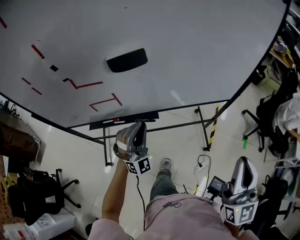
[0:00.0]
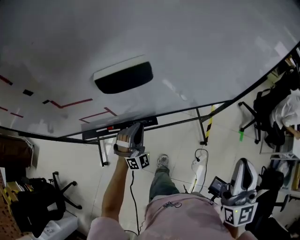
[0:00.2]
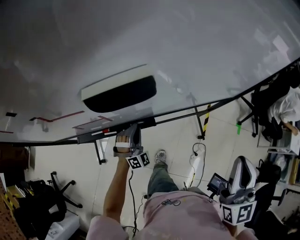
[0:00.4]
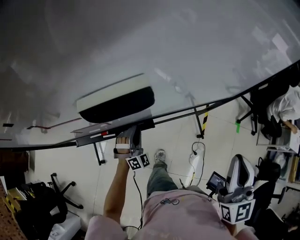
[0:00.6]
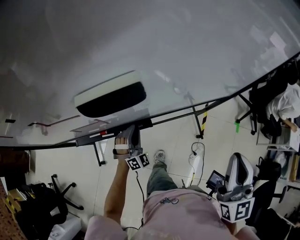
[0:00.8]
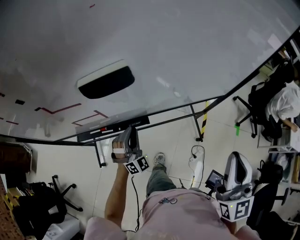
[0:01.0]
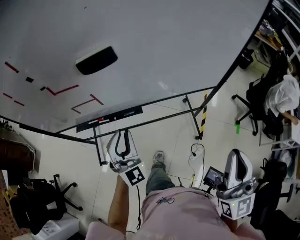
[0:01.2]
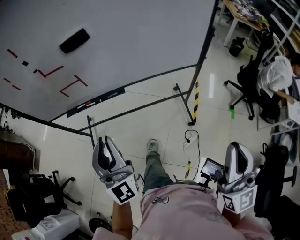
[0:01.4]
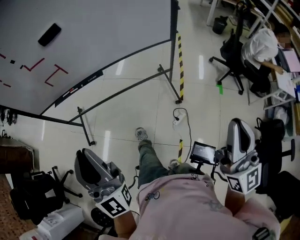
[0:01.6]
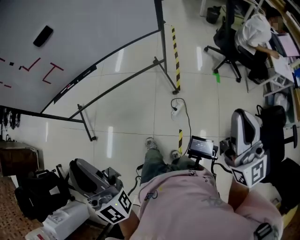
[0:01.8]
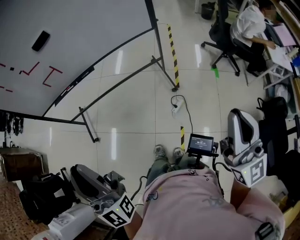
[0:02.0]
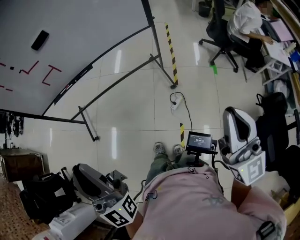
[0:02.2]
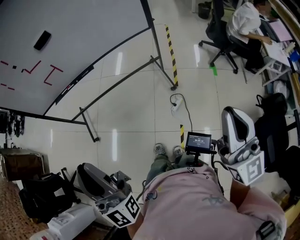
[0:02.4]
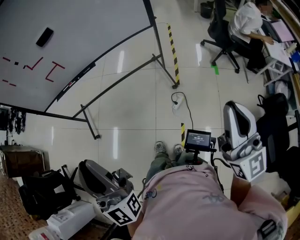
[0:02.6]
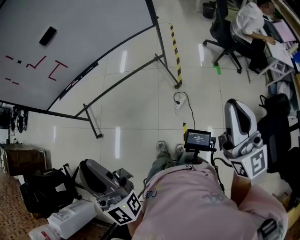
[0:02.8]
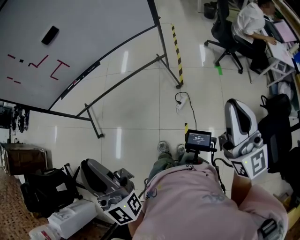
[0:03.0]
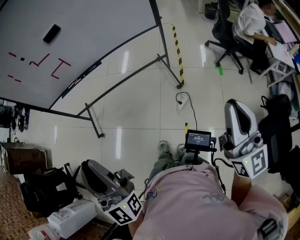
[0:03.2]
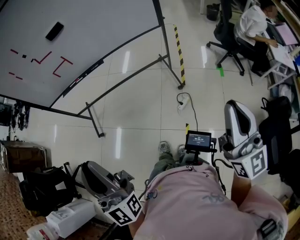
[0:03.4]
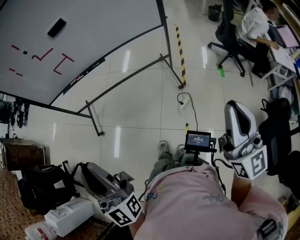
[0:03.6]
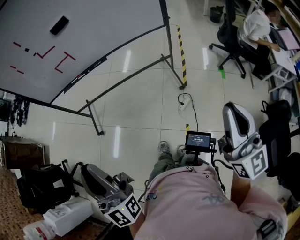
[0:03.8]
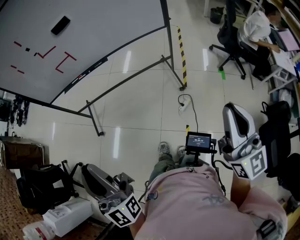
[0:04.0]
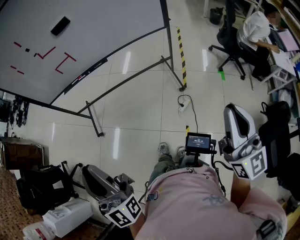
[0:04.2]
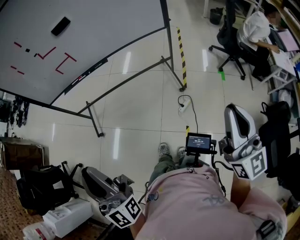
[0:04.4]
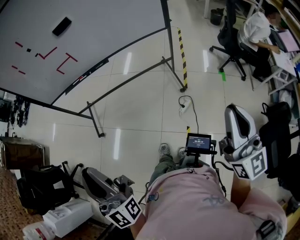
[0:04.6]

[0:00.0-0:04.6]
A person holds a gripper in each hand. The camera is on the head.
0:00.0 to 0:01.6: The left gripper goes some 40 cm backward and upward, and twists roughly 40 degrees counterclockwise, seen from behind. Meanwhile the right gripper shifts roughly 30 cm backward and to the right.
0:01.6 to 0:03.0: Both grippers travel together backward, some 15 cm.
0:03.0 to 0:04.6: The left gripper heads to the left, covering approximately 10 cm.

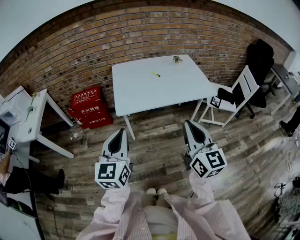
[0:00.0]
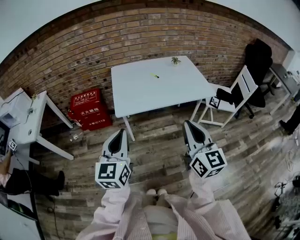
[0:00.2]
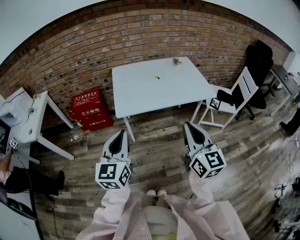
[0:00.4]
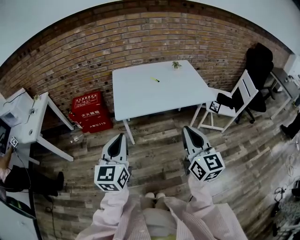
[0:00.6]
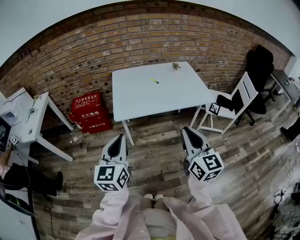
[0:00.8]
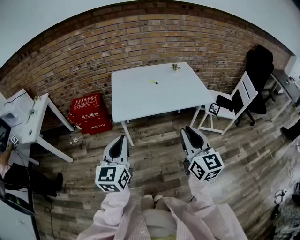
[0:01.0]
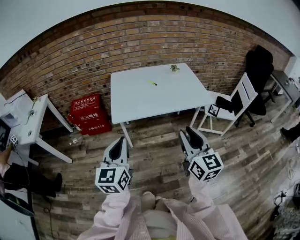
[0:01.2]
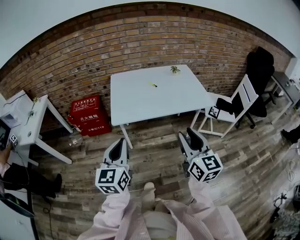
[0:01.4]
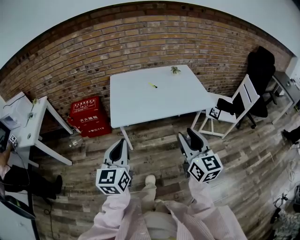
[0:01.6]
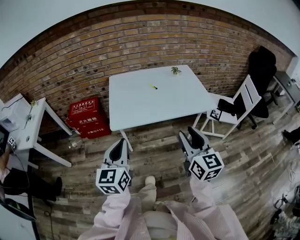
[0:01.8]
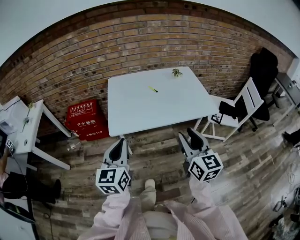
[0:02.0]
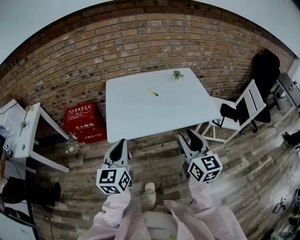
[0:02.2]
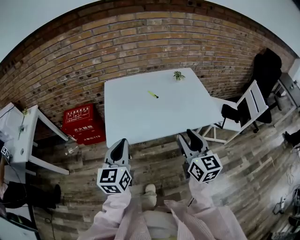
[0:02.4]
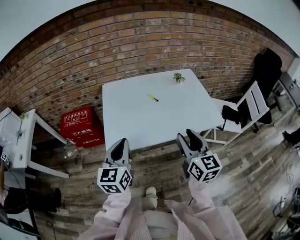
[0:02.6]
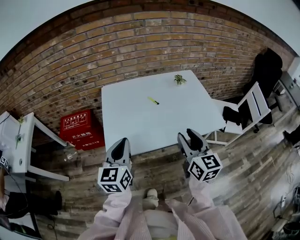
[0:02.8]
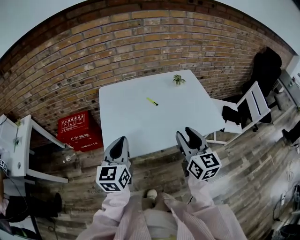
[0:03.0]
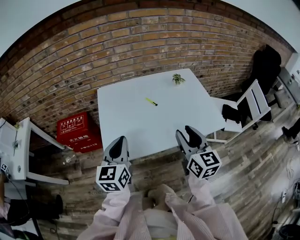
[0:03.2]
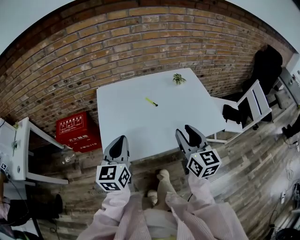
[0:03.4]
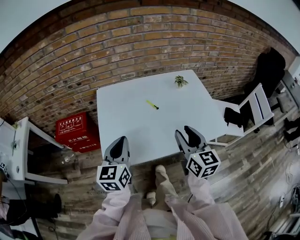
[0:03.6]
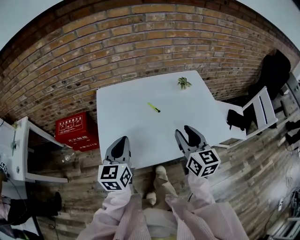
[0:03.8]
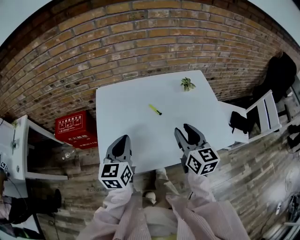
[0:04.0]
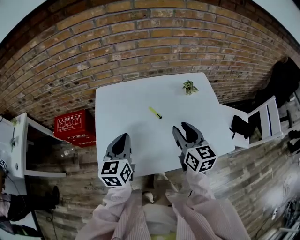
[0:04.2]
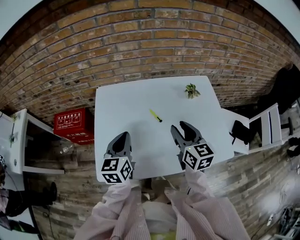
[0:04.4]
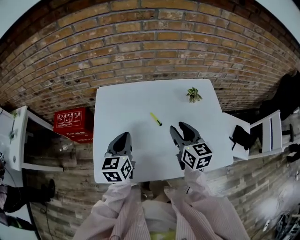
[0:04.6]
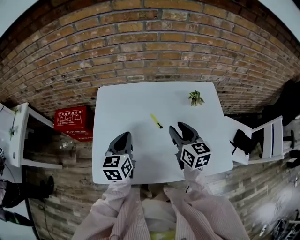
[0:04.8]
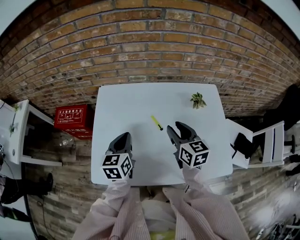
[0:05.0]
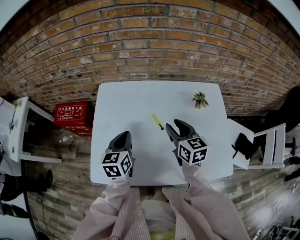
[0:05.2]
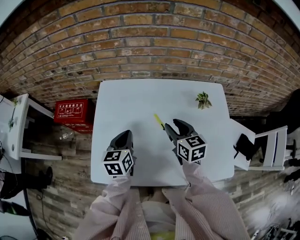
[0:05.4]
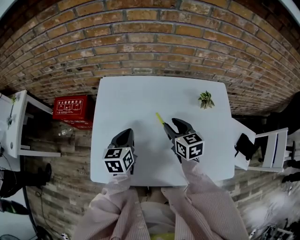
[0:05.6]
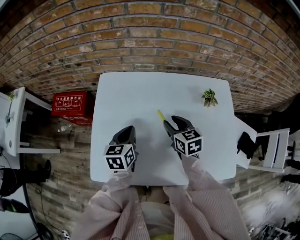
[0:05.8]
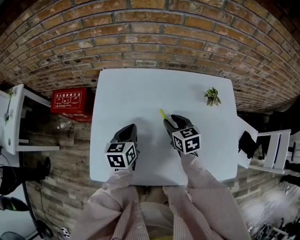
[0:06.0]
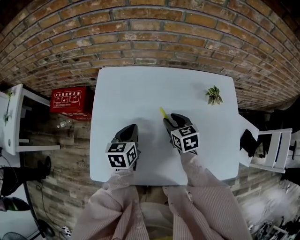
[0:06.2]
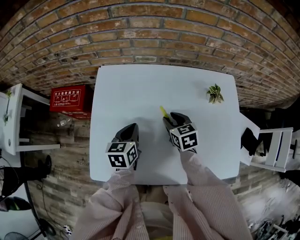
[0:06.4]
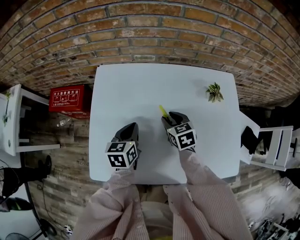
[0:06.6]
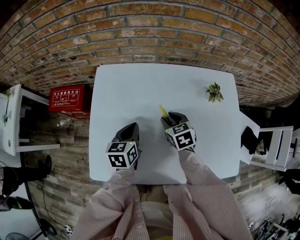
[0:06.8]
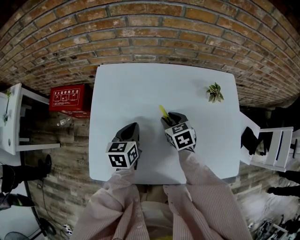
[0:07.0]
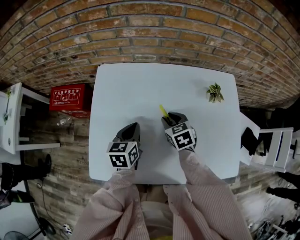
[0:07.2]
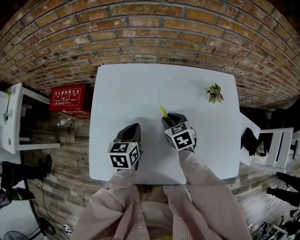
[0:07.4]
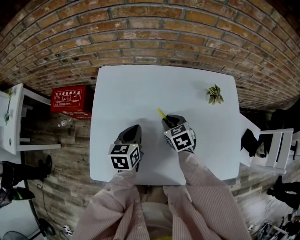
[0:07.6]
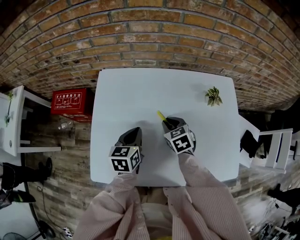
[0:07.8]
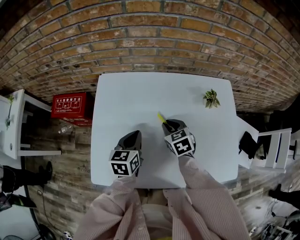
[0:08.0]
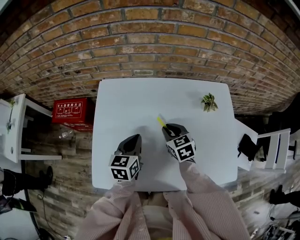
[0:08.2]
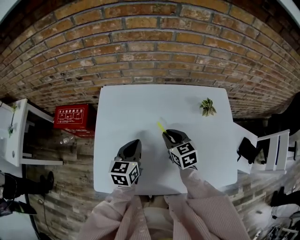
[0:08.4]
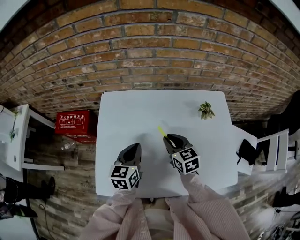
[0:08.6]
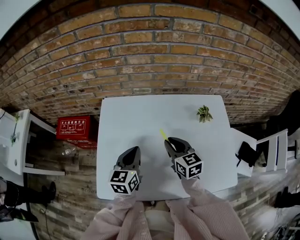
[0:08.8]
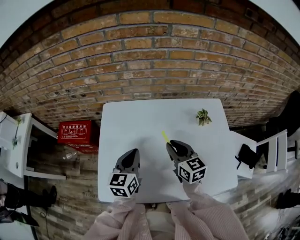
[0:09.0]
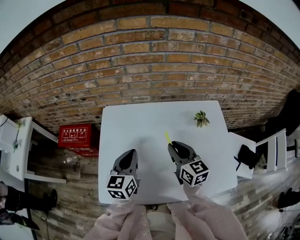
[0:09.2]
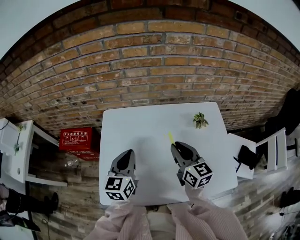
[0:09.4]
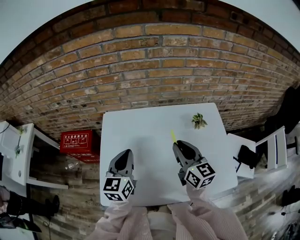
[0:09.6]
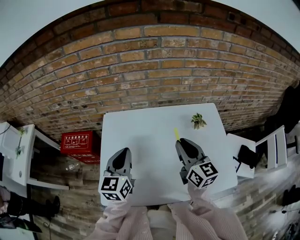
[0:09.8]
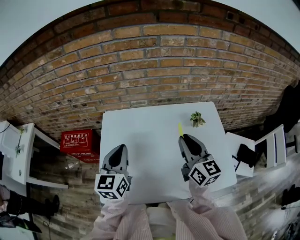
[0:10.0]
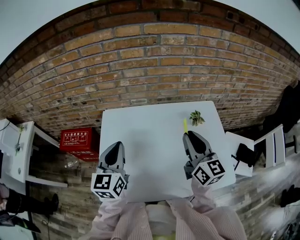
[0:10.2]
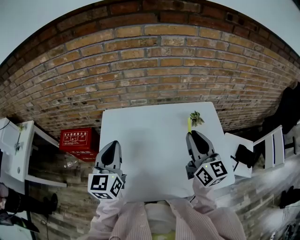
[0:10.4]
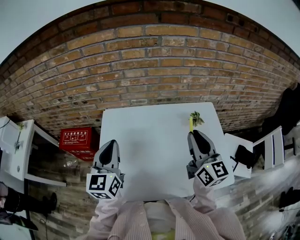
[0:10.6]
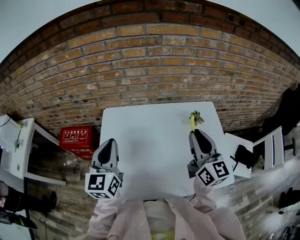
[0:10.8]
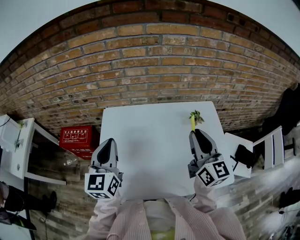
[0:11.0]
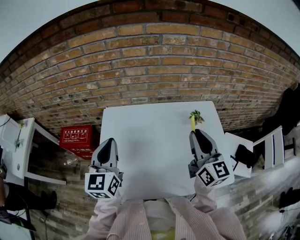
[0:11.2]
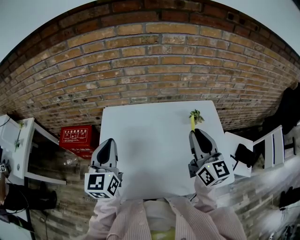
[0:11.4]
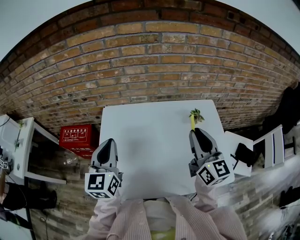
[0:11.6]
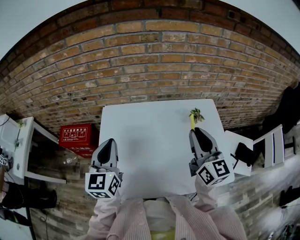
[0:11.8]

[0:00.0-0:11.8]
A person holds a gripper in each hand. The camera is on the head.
0:00.0 to 0:01.4: The right gripper shifts by some 5 cm, and opens up.
0:01.4 to 0:03.0: The two grippers go approximately 30 cm forward.
0:03.0 to 0:04.4: The grippers both shift forward by some 20 cm.
0:04.4 to 0:06.0: Both grippers travel together downward and forward, some 15 cm. The right gripper swivels approximately 30 degrees.
0:06.0 to 0:07.4: The grippers stay close to where they were, moving slightly.
0:07.4 to 0:08.8: Both grippers move upward, some 10 cm. The right gripper turns by about 30 degrees.
0:08.8 to 0:10.4: The right gripper travels upward and to the right by some 20 cm, and rotates about 30 degrees. Meanwhile the left gripper heads upward, covering some 15 cm, and turns by approximately 20 degrees.
0:10.4 to 0:11.8: The grippers stay close to where they were, moving slightly.

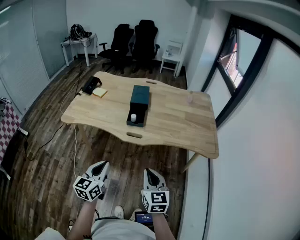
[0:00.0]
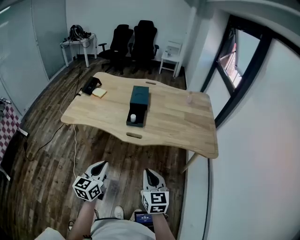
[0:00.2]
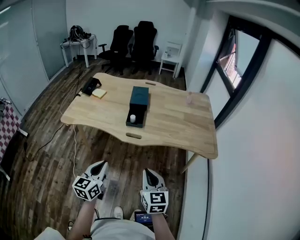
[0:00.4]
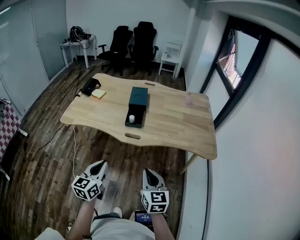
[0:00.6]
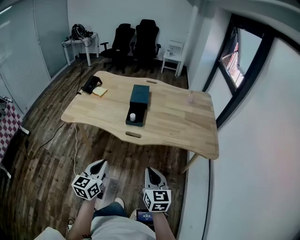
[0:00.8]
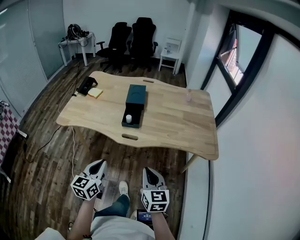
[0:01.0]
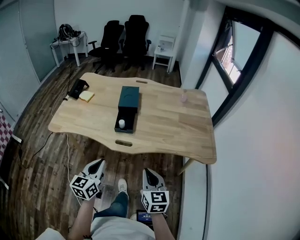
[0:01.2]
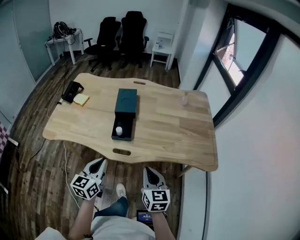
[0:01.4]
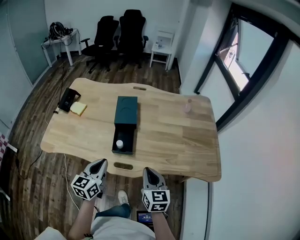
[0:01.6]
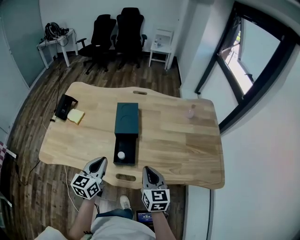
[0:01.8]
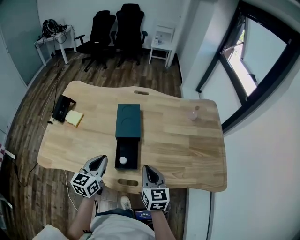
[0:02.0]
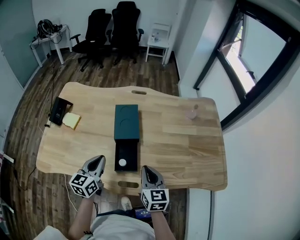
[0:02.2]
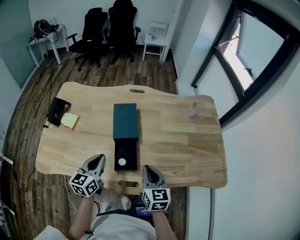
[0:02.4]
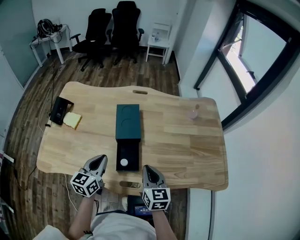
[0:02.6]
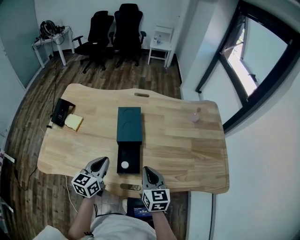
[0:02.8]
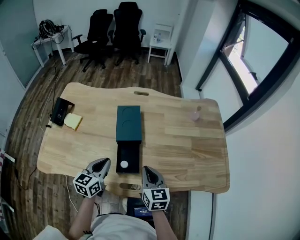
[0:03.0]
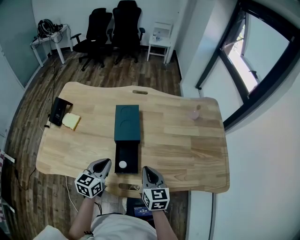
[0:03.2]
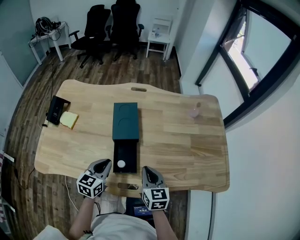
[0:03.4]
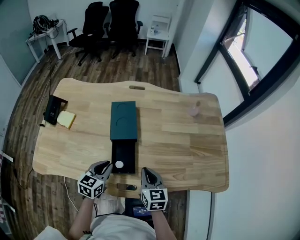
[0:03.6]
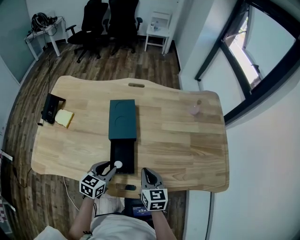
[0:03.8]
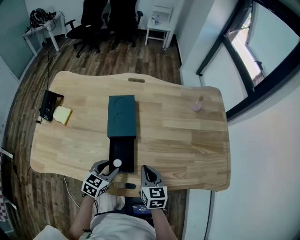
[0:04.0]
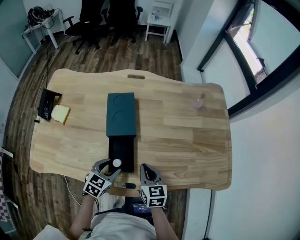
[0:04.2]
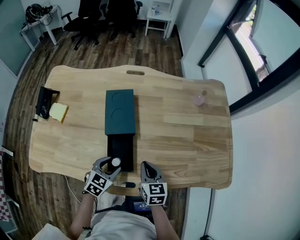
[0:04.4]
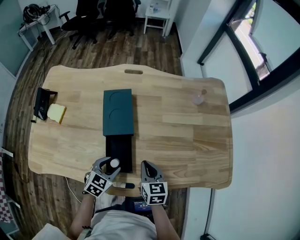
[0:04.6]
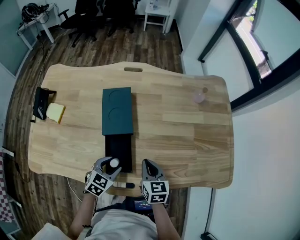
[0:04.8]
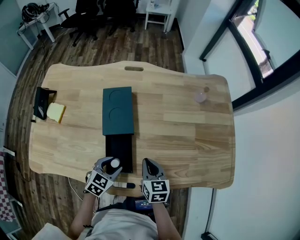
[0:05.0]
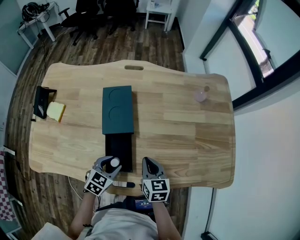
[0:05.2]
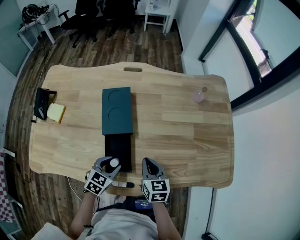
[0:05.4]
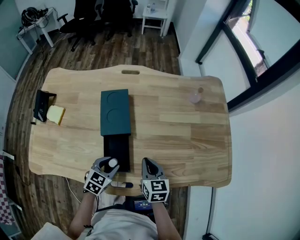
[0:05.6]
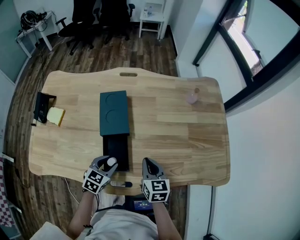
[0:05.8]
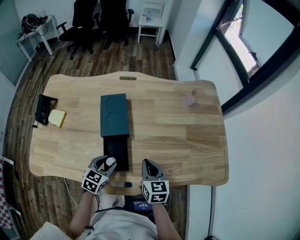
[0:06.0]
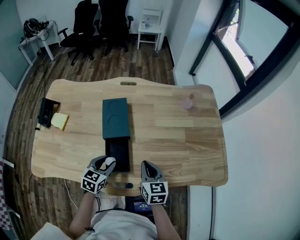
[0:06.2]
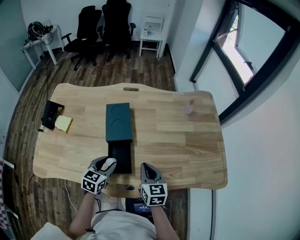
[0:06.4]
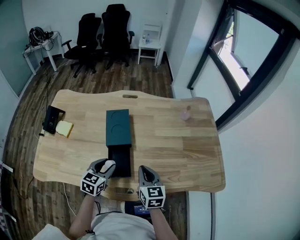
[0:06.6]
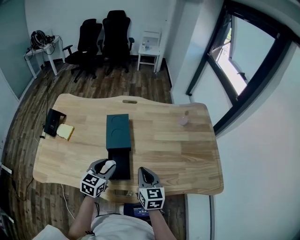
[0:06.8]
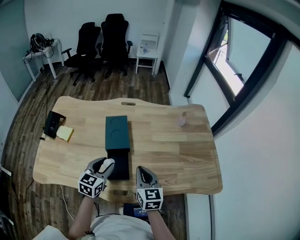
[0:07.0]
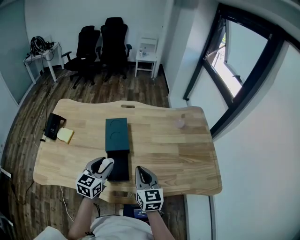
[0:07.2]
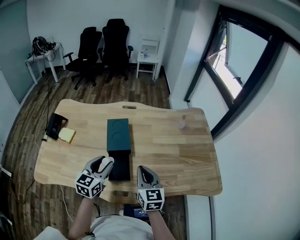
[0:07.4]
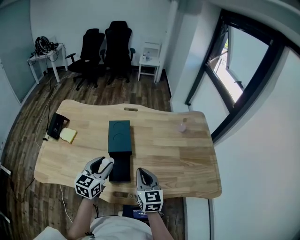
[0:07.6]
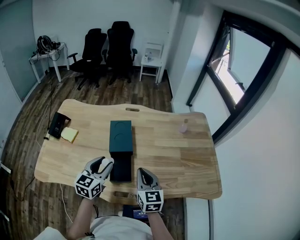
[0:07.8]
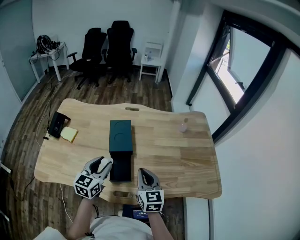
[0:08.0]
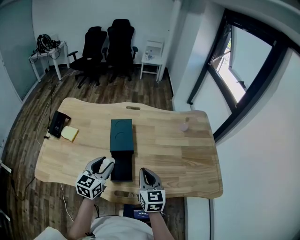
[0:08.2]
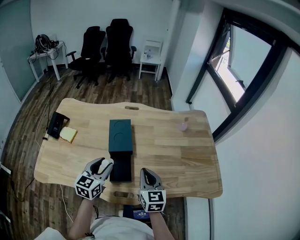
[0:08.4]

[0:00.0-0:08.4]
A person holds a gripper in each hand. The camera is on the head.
0:00.0 to 0:01.4: Both grippers travel together forward, some 20 cm.
0:01.4 to 0:02.8: The right gripper goes about 25 cm forward and to the left. The left gripper is displaced forward by roughly 25 cm.
0:02.8 to 0:04.2: The left gripper moves downward and to the right, some 15 cm, swivels about 30 degrees, and opens its fingers; the right gripper is displaced downward by roughly 10 cm.
0:04.2 to 0:05.6: The grippers move only a little.
0:05.6 to 0:07.0: Both grippers move upward, approximately 15 cm. The left gripper swivels some 20 degrees.
0:07.0 to 0:08.4: The grippers make only small movements.
